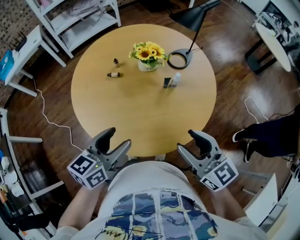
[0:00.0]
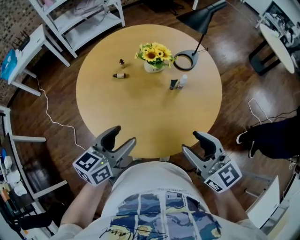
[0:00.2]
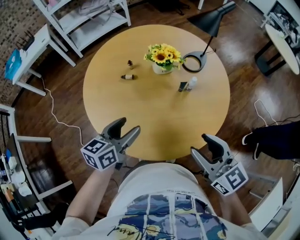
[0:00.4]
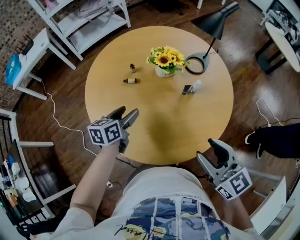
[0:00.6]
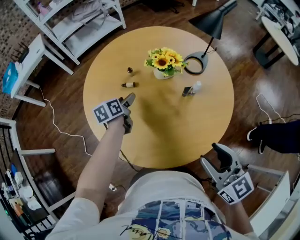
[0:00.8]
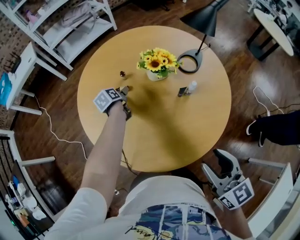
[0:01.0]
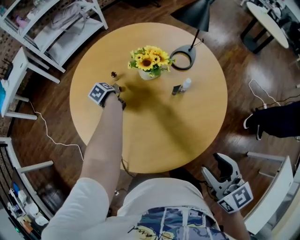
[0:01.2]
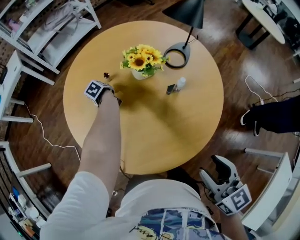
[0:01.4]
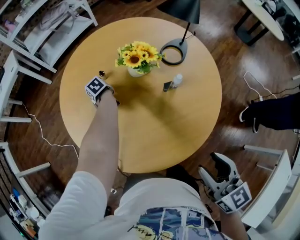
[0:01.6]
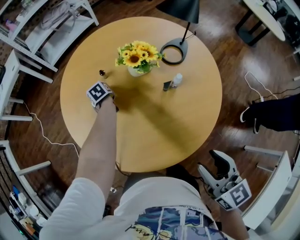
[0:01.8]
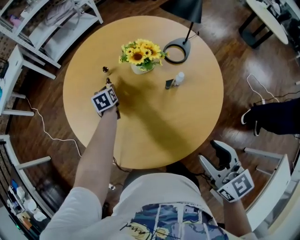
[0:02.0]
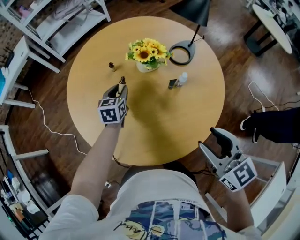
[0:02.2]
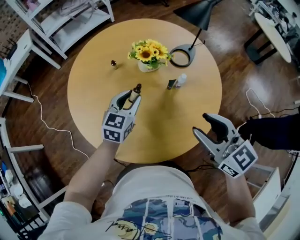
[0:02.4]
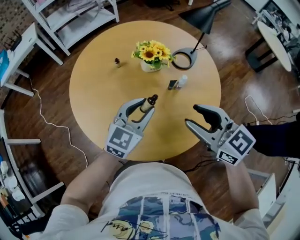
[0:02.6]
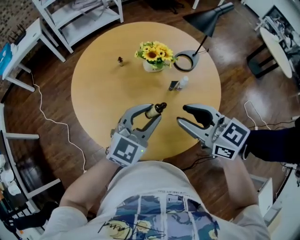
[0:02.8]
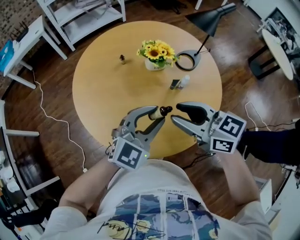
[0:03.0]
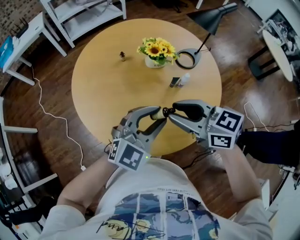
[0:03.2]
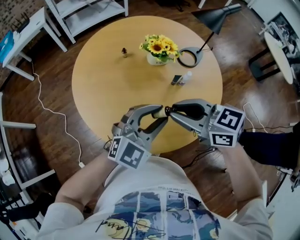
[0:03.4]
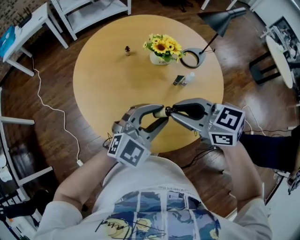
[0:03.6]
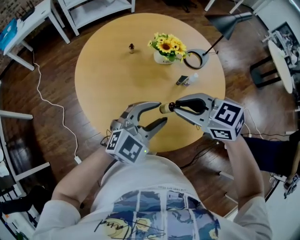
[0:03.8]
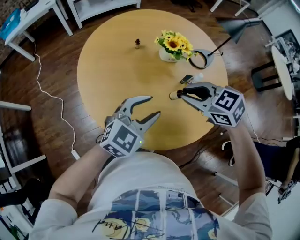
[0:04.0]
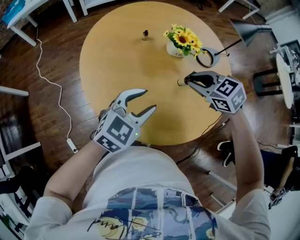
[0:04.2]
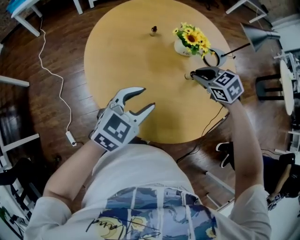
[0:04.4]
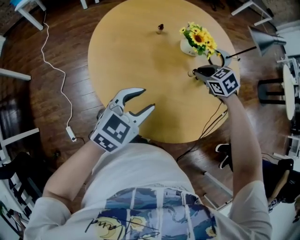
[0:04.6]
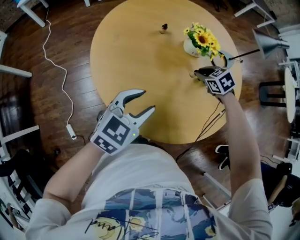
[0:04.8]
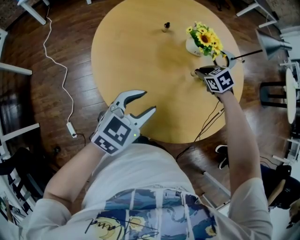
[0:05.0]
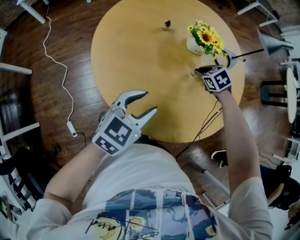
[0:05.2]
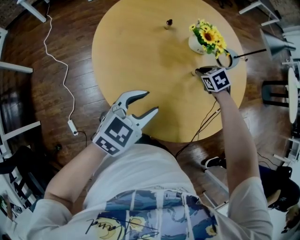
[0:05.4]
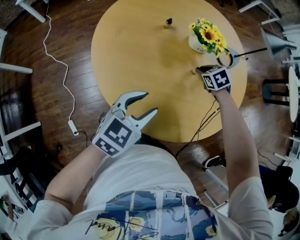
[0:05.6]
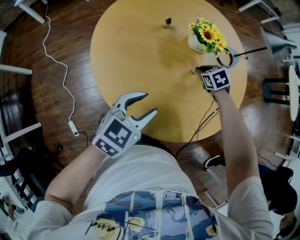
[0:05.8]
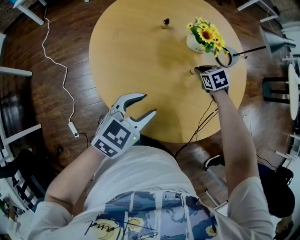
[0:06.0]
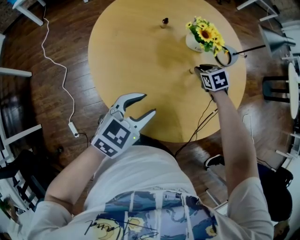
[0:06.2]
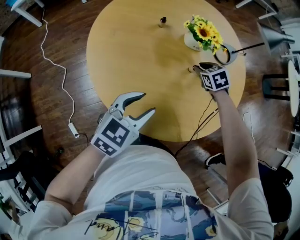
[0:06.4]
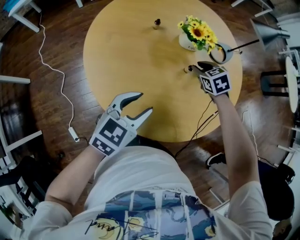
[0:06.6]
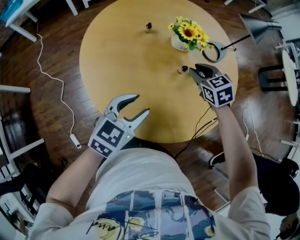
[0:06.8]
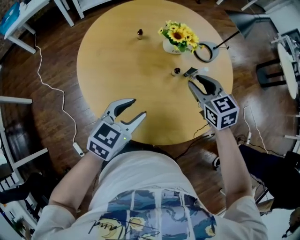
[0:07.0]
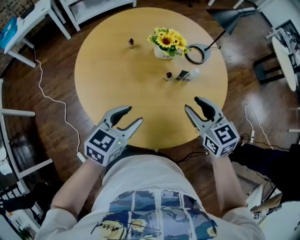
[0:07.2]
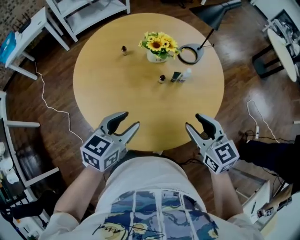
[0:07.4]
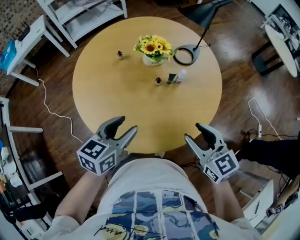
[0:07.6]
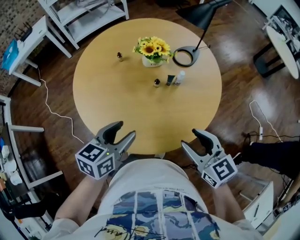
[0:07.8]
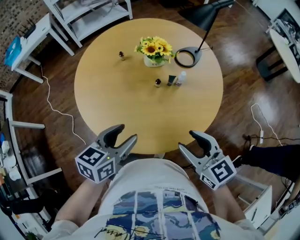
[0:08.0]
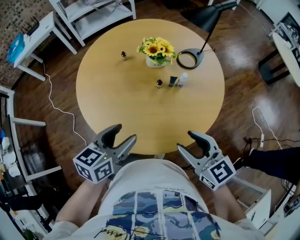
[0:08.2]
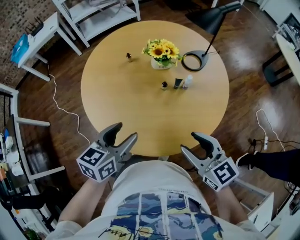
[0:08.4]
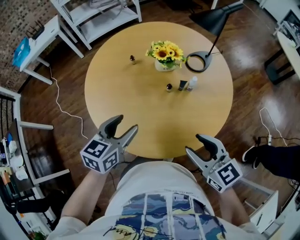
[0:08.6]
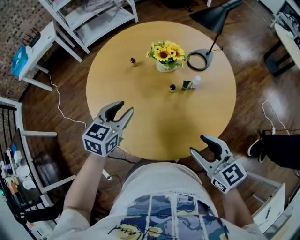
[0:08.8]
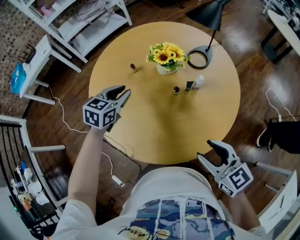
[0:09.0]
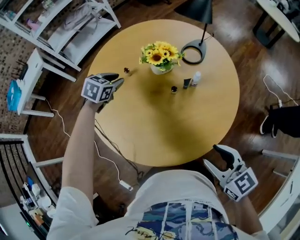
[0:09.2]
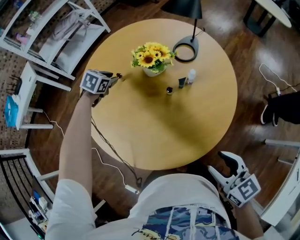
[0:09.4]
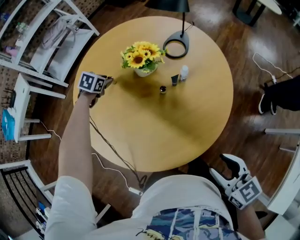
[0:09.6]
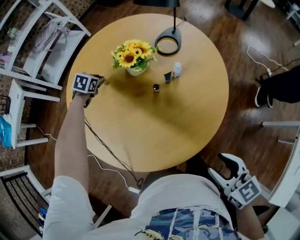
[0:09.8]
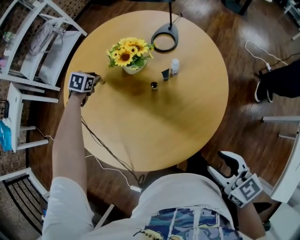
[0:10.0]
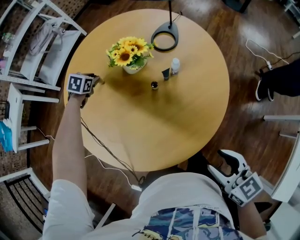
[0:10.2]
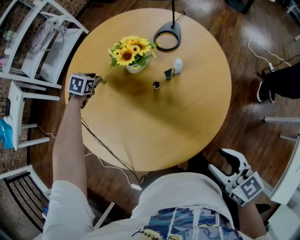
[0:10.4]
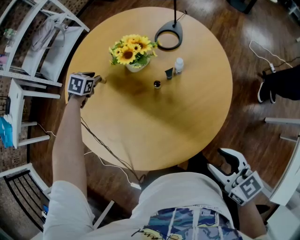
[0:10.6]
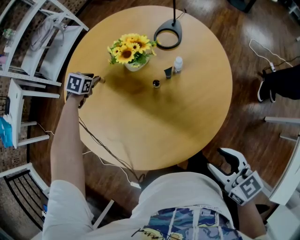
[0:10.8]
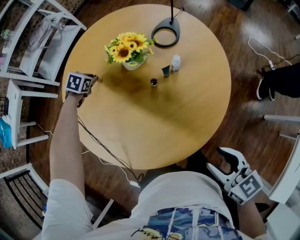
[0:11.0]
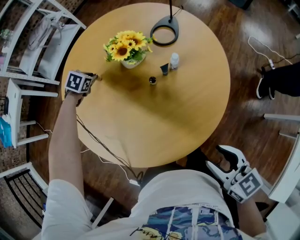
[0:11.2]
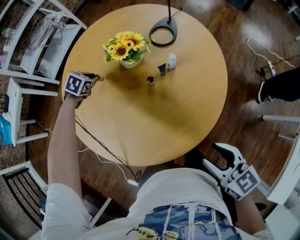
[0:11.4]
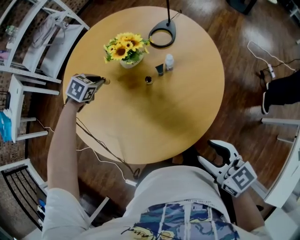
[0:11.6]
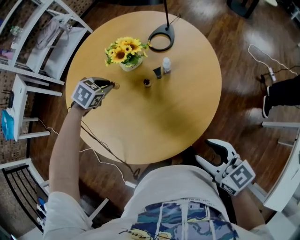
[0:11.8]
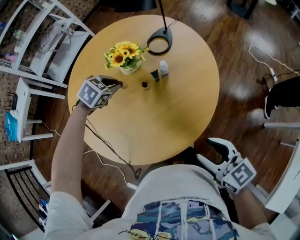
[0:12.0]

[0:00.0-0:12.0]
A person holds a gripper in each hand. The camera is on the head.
0:00.0 to 0:01.6: The left gripper heads forward and downward, covering approximately 50 cm, tips its fingers downward by approximately 40 degrees, and closes, while the right gripper ends up some 5 cm from where it was, and changes its angle by some 20 degrees.
0:01.6 to 0:03.0: The left gripper moves backward, upward and to the right, roughly 50 cm, and points its fingers some 50 degrees further upward. The right gripper goes some 10 cm forward and to the left, and turns by some 40 degrees.
0:03.0 to 0:04.4: The left gripper is displaced to the left and downward by about 15 cm, and swivels some 30 degrees. The right gripper shifts roughly 20 cm downward and forward, and angles its fingers downward, by some 40 degrees.
0:04.4 to 0:06.0: The right gripper goes about 15 cm downward and forward, and changes its angle by roughly 20 degrees.
0:06.0 to 0:07.6: The right gripper travels backward, upward and to the right by some 35 cm, angles its fingers upward, by about 40 degrees, and opens up, while the left gripper goes roughly 10 cm to the right and upward.
0:07.6 to 0:09.0: The left gripper goes approximately 20 cm forward.
0:09.0 to 0:10.4: The left gripper travels forward and downward by roughly 25 cm, and turns by roughly 30 degrees, while the right gripper shifts by approximately 5 cm, and swivels about 20 degrees.
0:10.4 to 0:12.0: The right gripper moves about 5 cm. The left gripper shifts some 25 cm to the right, backward and upward, and rotates approximately 20 degrees.

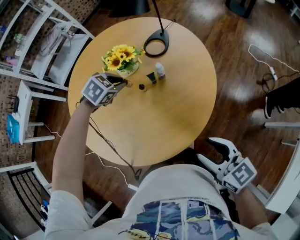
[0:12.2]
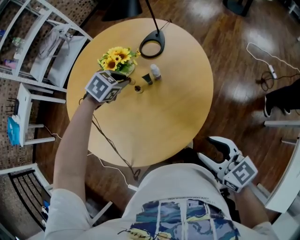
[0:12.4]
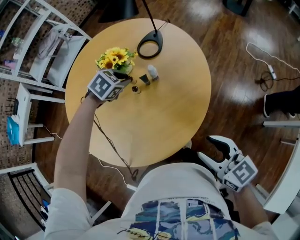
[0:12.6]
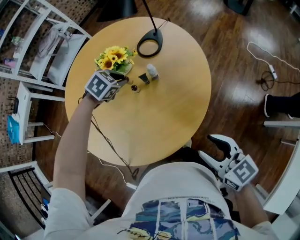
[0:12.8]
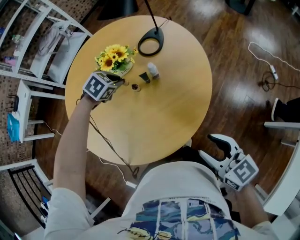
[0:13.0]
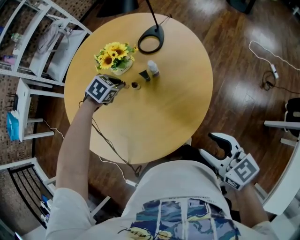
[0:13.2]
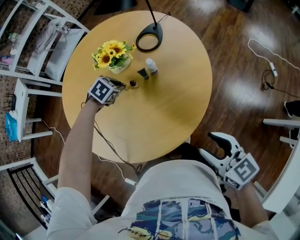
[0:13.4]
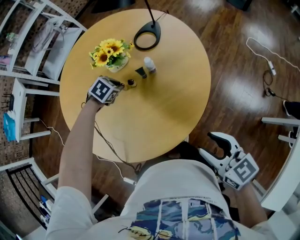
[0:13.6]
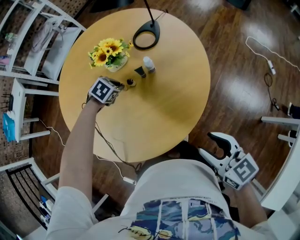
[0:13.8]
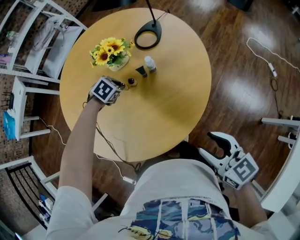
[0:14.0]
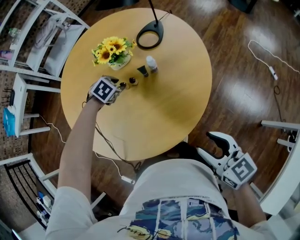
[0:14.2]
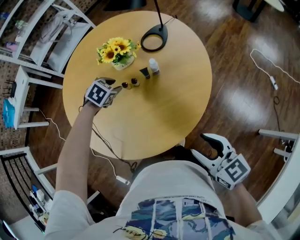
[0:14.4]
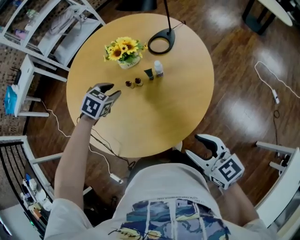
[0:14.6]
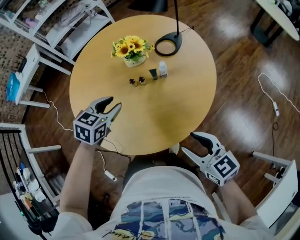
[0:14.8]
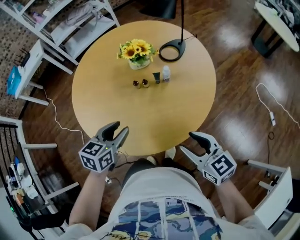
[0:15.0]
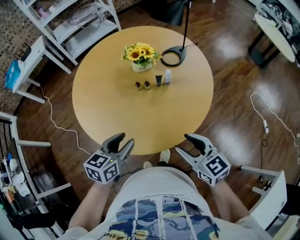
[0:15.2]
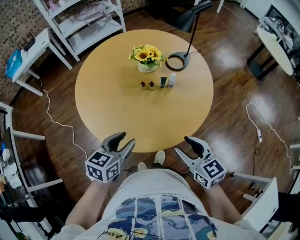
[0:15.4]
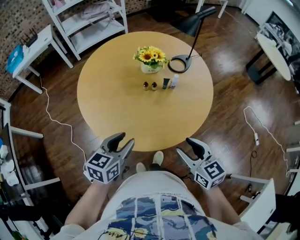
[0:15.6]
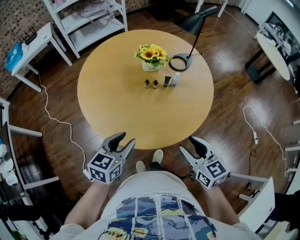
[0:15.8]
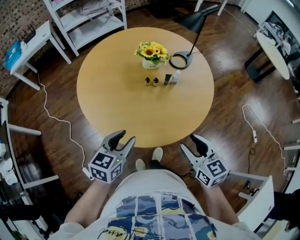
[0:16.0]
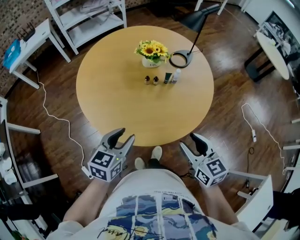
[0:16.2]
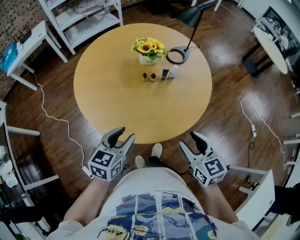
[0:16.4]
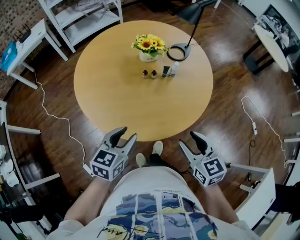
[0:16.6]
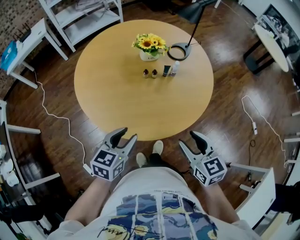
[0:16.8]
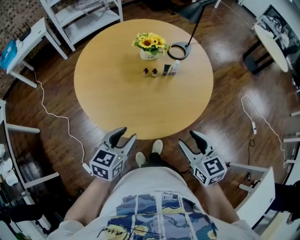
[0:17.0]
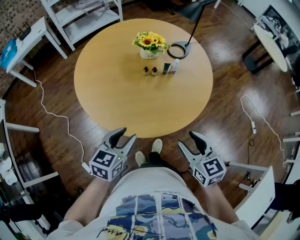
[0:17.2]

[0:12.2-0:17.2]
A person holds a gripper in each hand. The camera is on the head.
0:12.2 to 0:13.8: The left gripper travels downward by about 10 cm. The right gripper changes place by about 5 cm.
0:13.8 to 0:15.6: The left gripper shifts by some 40 cm, and points its fingers about 40 degrees further upward, while the right gripper changes place by roughly 10 cm.
0:15.6 to 0:17.2: There are only small adjustments of the grippers.

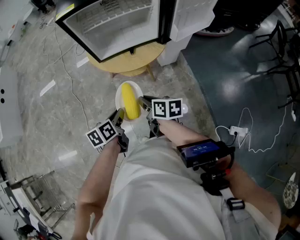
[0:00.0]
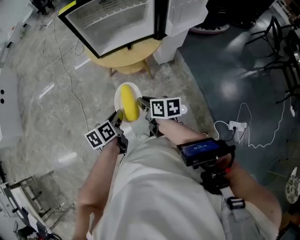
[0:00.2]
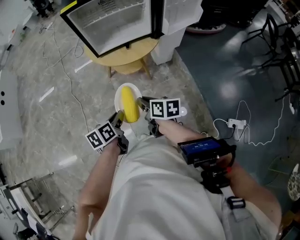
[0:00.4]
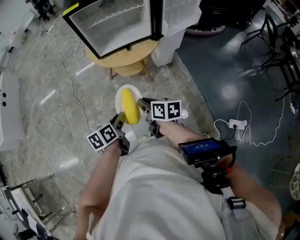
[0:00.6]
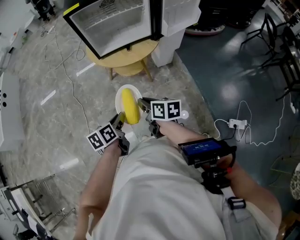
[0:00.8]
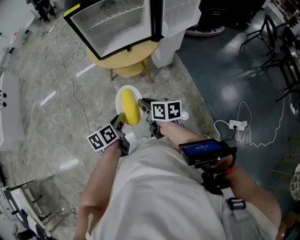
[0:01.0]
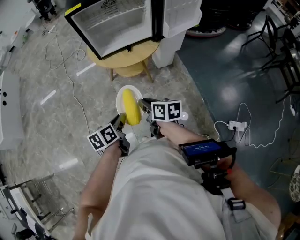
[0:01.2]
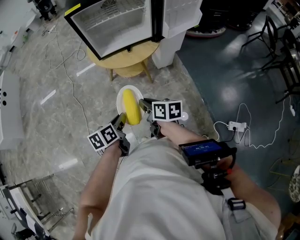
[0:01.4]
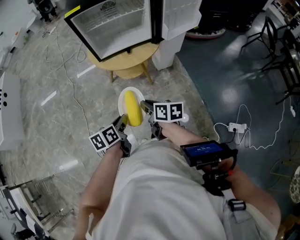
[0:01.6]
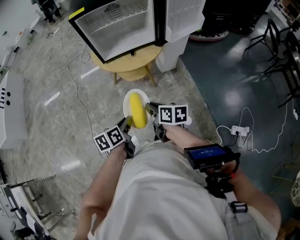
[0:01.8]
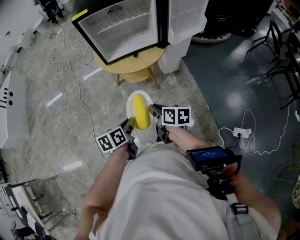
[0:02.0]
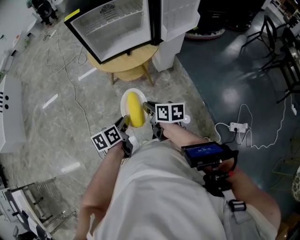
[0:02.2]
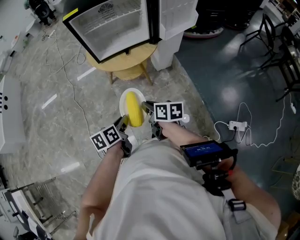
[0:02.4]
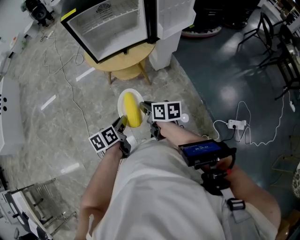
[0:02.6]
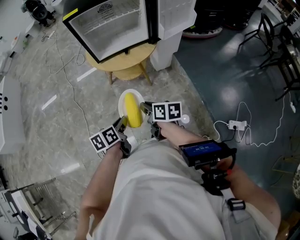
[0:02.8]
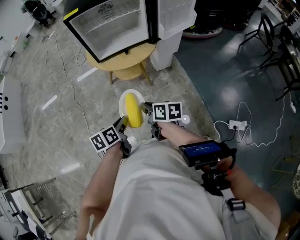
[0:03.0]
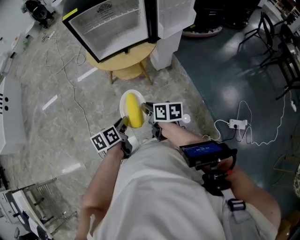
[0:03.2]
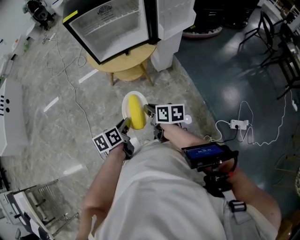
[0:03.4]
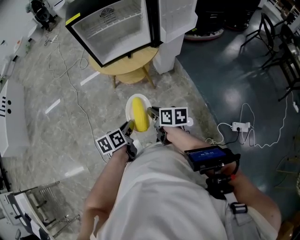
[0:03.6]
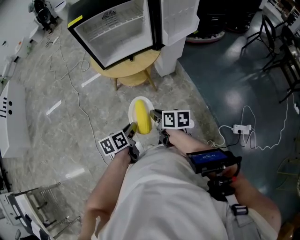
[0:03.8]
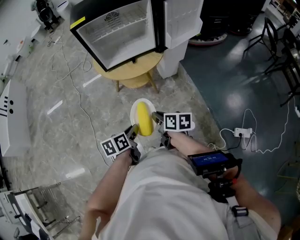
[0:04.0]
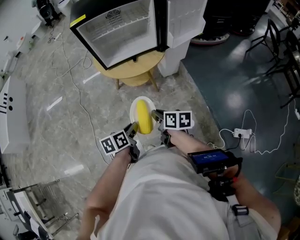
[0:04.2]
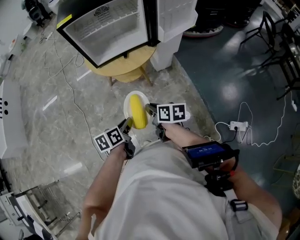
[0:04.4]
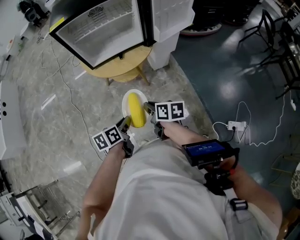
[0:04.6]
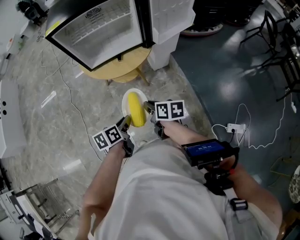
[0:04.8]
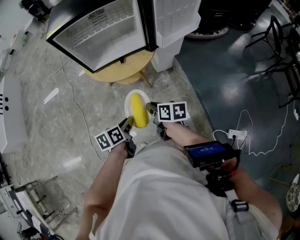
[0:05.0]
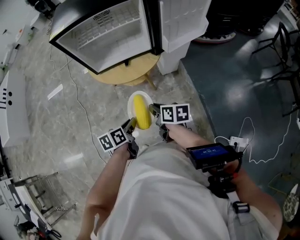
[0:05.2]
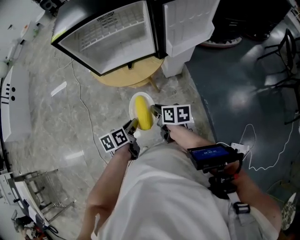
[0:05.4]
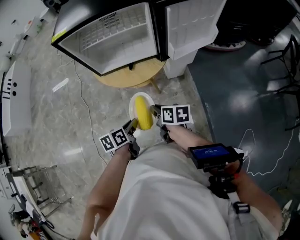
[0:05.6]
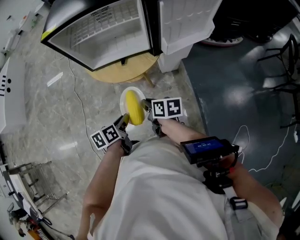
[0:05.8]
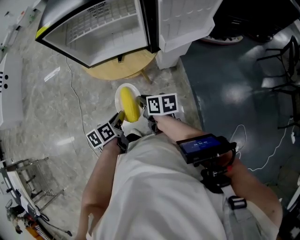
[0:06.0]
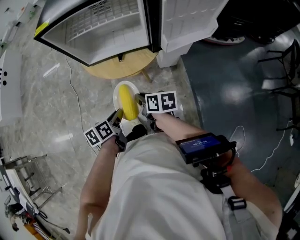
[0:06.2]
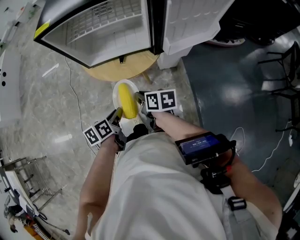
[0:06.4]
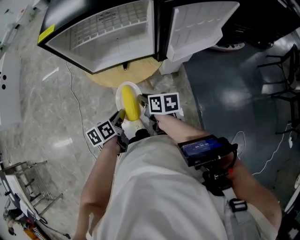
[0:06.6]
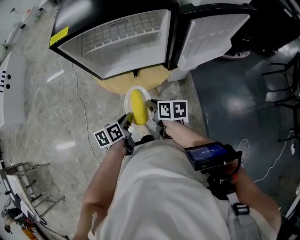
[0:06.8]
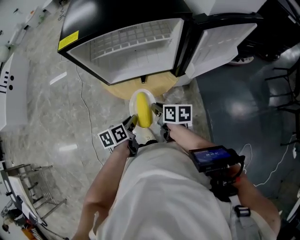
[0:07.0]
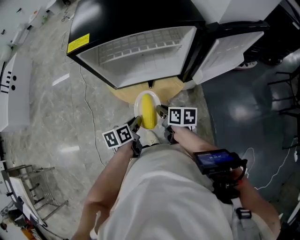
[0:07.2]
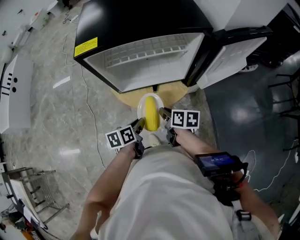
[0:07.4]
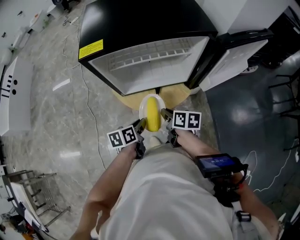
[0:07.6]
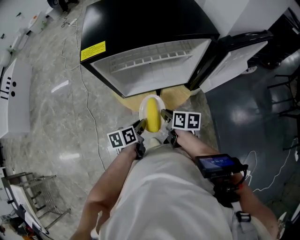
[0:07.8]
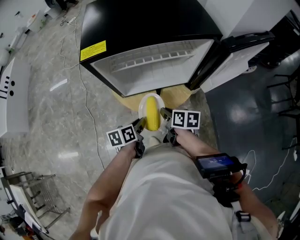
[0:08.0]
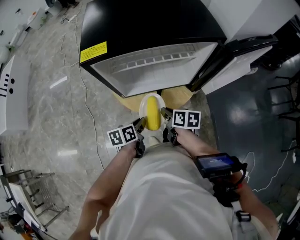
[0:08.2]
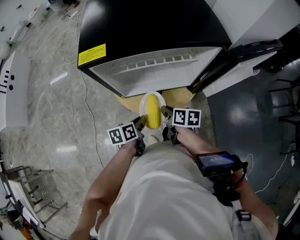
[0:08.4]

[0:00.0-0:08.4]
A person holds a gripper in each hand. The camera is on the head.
0:00.0 to 0:01.4: The grippers both shift backward by about 10 cm.
0:01.4 to 0:04.2: The grippers move only a little.
0:04.2 to 0:05.6: The two grippers go roughly 15 cm forward and to the right.
0:05.6 to 0:07.0: The two grippers go some 15 cm forward.
0:07.0 to 0:08.4: The two grippers go roughly 10 cm forward.
